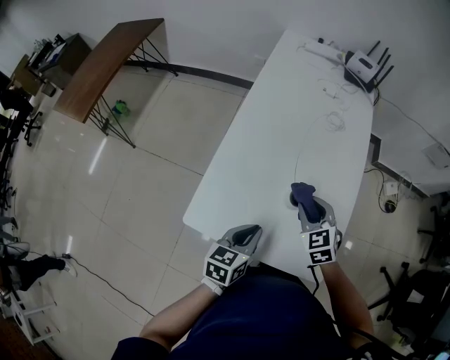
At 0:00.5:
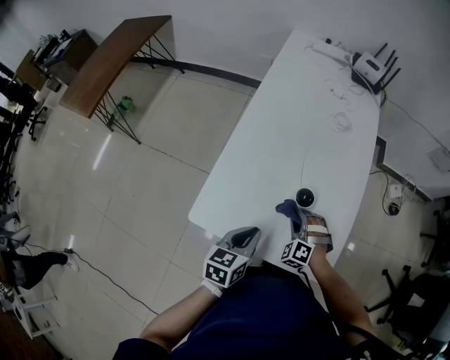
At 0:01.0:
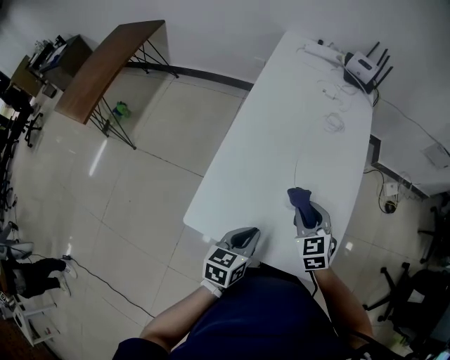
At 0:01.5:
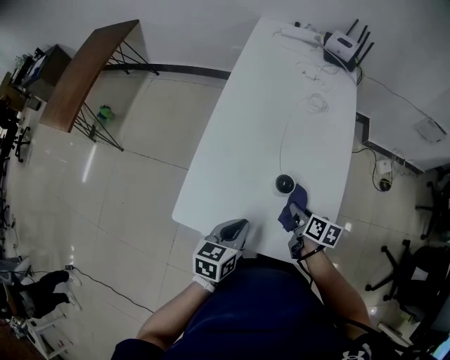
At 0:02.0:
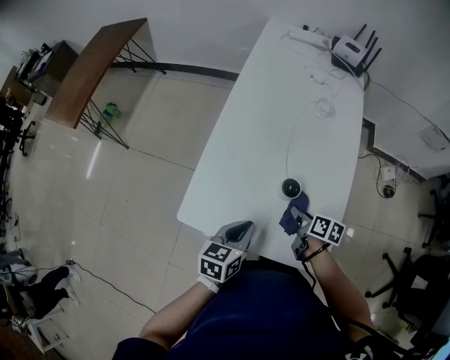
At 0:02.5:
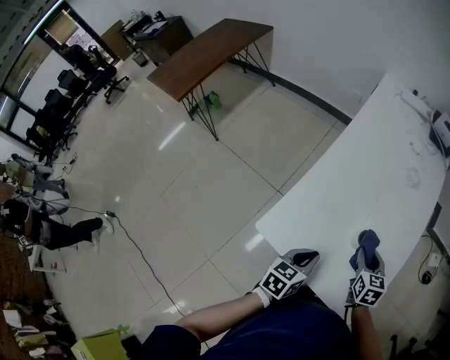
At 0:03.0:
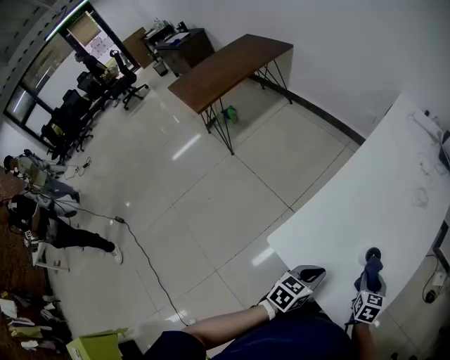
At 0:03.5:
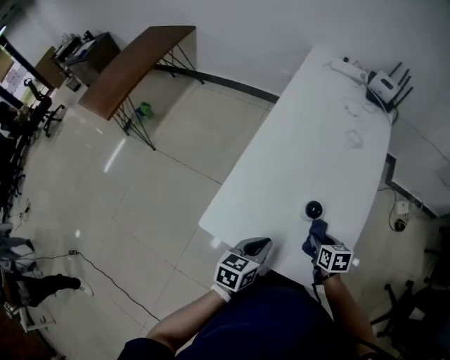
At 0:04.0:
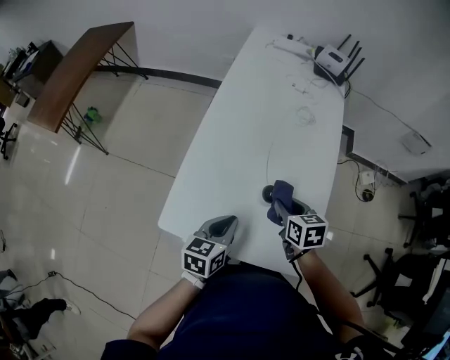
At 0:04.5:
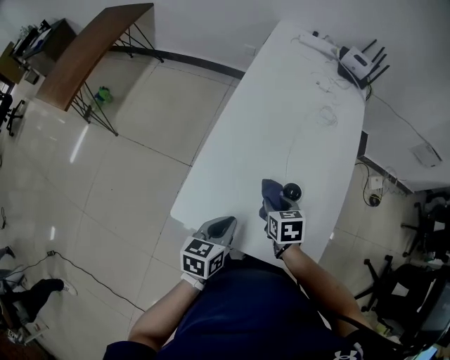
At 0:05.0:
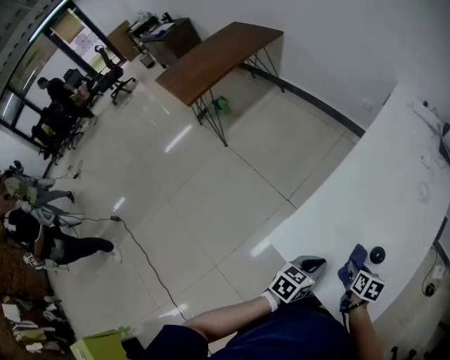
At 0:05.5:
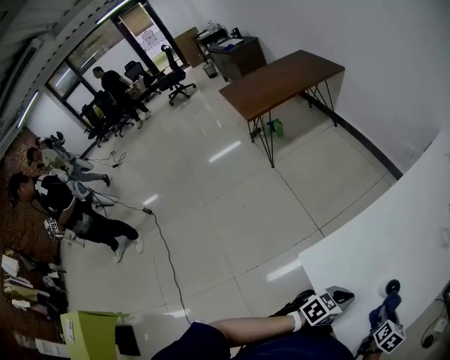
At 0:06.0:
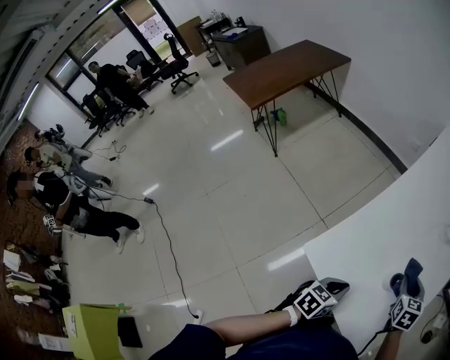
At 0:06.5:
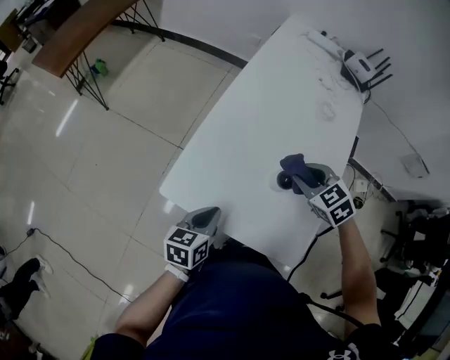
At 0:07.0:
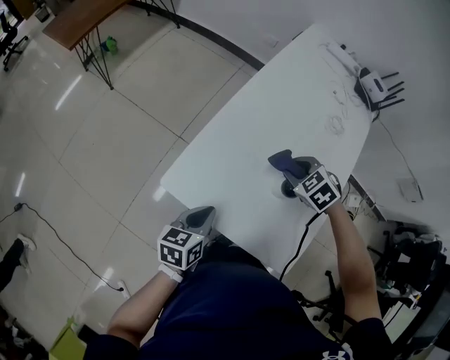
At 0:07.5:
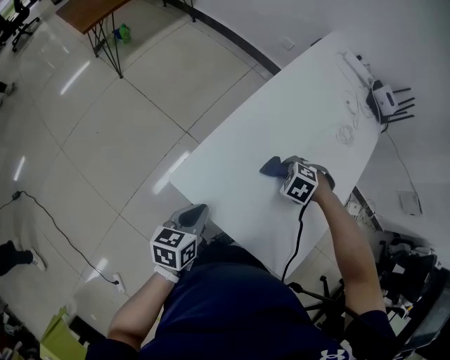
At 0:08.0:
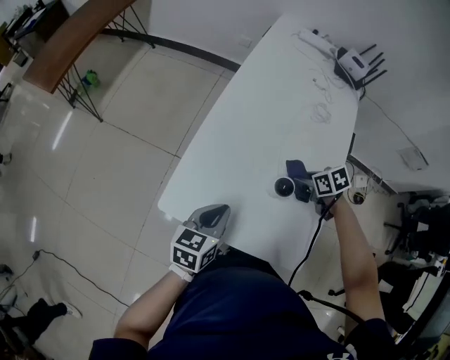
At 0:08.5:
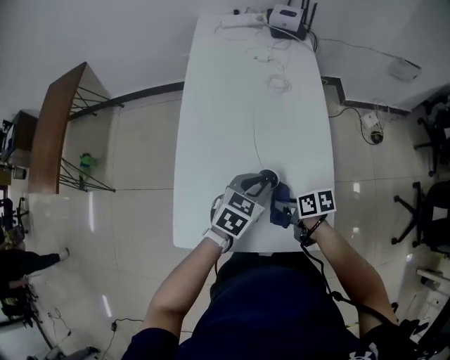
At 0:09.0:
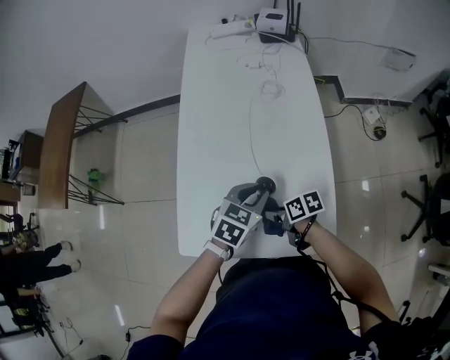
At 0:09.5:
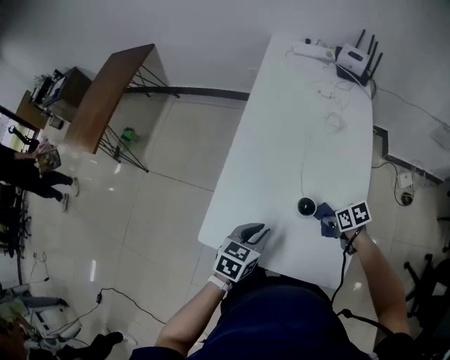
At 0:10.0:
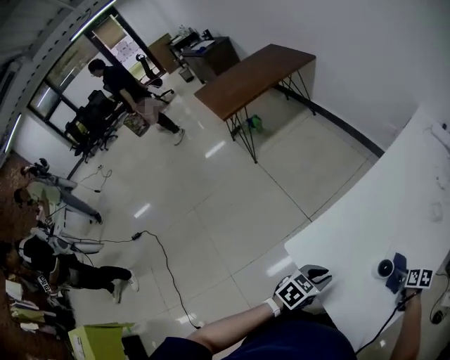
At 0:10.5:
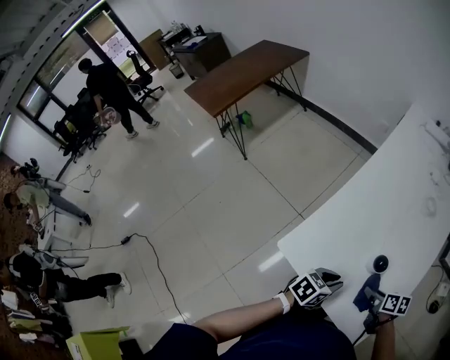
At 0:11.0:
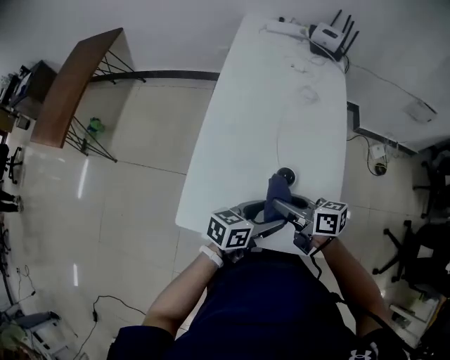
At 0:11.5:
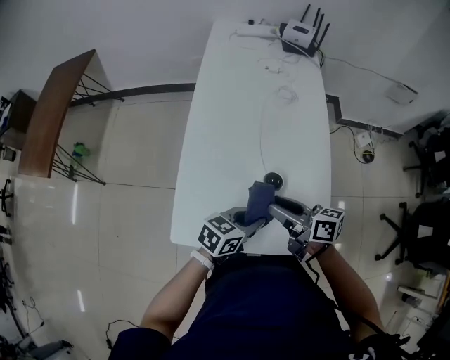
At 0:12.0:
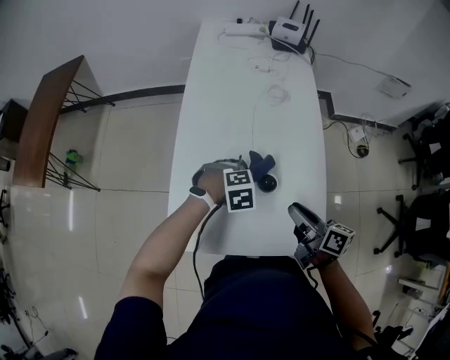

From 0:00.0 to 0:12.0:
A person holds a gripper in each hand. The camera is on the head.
From 0:00.0 to 0:02.0: The right gripper moves up and down over about 10 cm, changing direction 2 times, and twists some 70 degrees clockwise, seen from behind.
From 0:02.0 to 0:04.0: The right gripper goes up and down, approximately 10 cm each way, reversing 2 times, and swivels approximately 30 degrees.
From 0:04.0 to 0:06.0: The right gripper moves forward and upward, some 5 cm, and rotates some 30 degrees, while the left gripper moves about 5 cm.
From 0:06.0 to 0:08.0: The right gripper heads downward, covering some 10 cm, and rotates some 40 degrees.
From 0:08.0 to 0:10.0: The left gripper goes to the right and returns, roughly 15 cm each way; the right gripper goes approximately 10 cm downward and to the right.
From 0:10.0 to 0:12.0: The right gripper heads upward, covering some 20 cm, and tilts its fingers approximately 40 degrees upward. The left gripper moves approximately 20 cm, twists roughly 80 degrees clockwise, seen from behind, and opens, then closes again.

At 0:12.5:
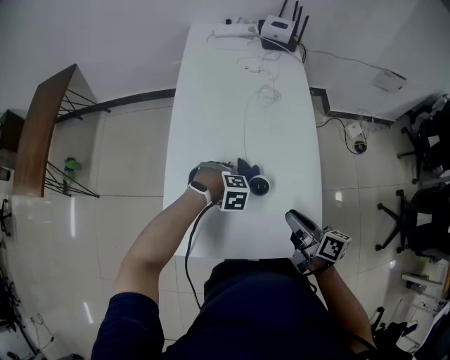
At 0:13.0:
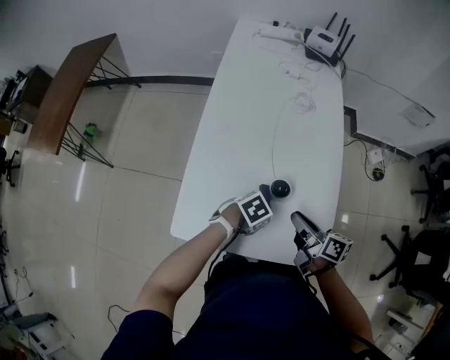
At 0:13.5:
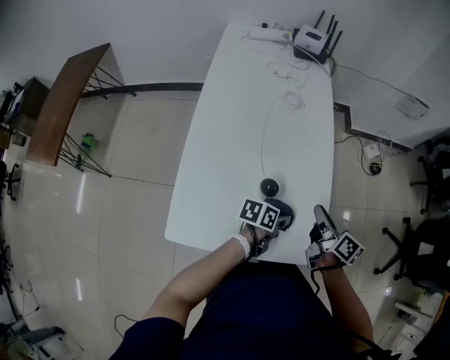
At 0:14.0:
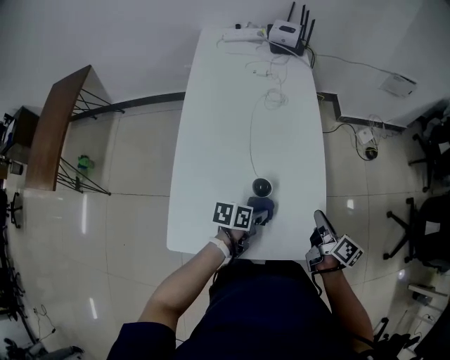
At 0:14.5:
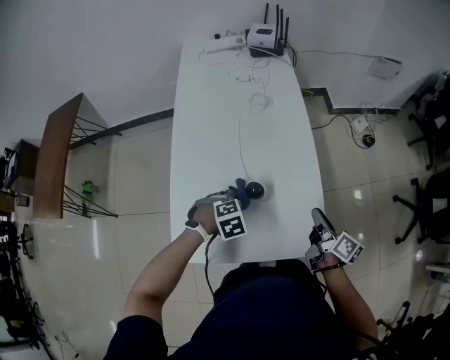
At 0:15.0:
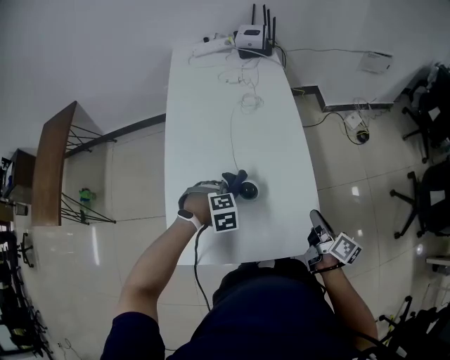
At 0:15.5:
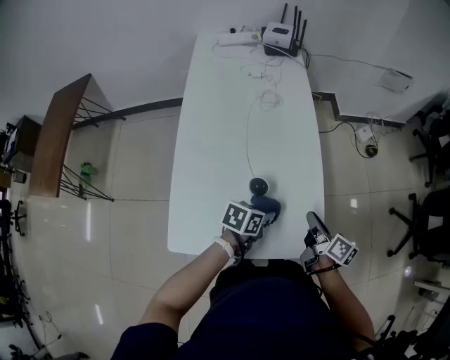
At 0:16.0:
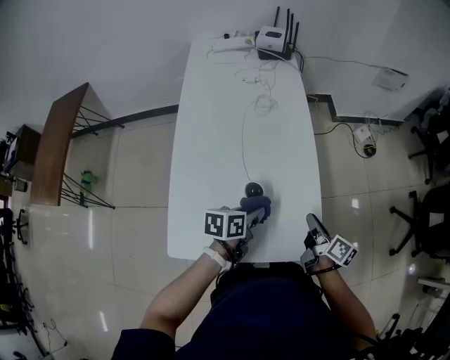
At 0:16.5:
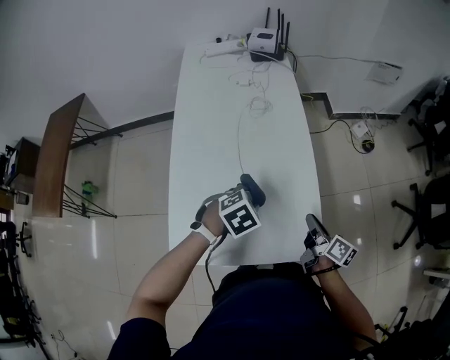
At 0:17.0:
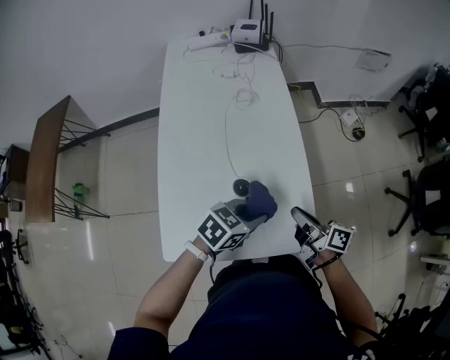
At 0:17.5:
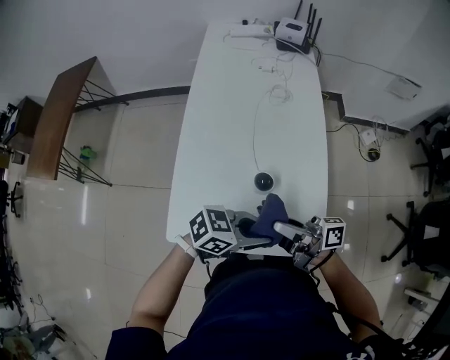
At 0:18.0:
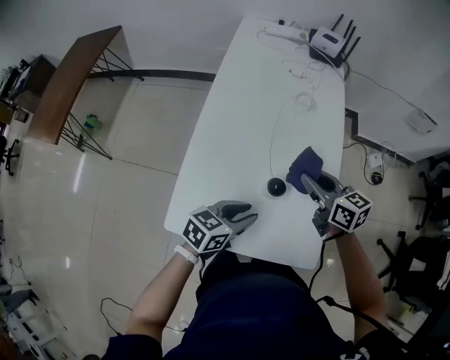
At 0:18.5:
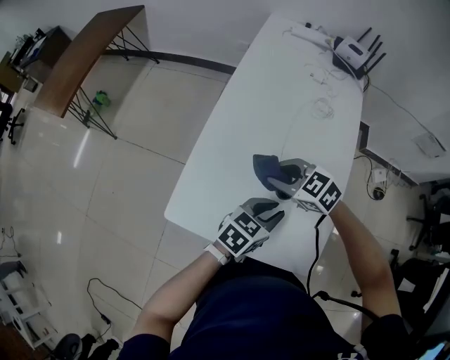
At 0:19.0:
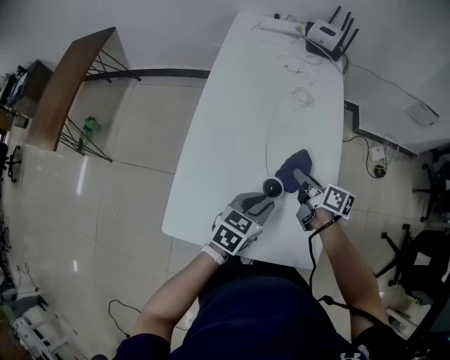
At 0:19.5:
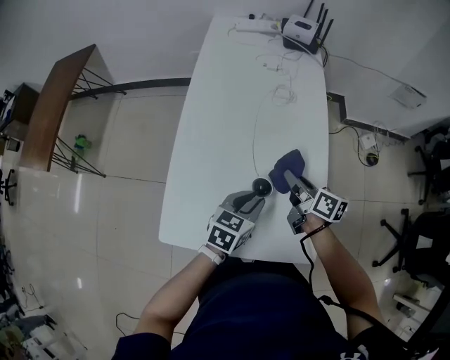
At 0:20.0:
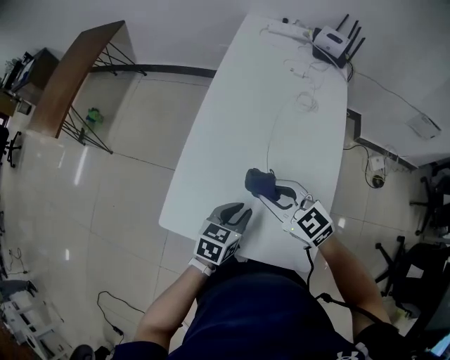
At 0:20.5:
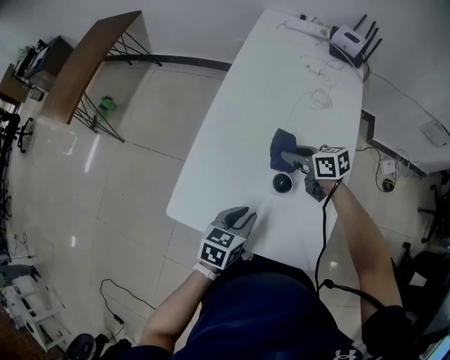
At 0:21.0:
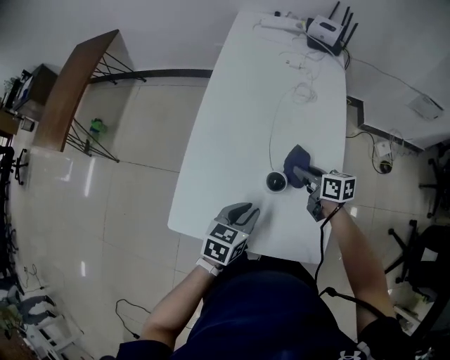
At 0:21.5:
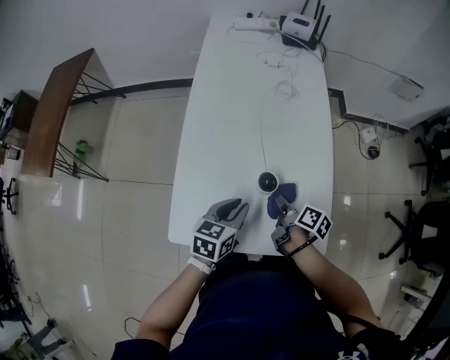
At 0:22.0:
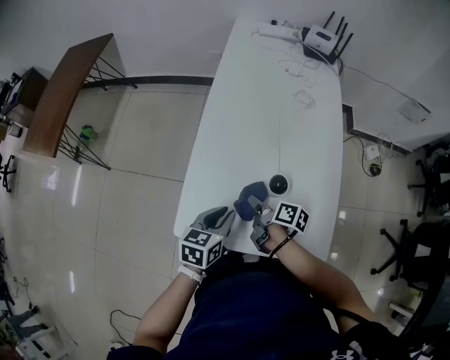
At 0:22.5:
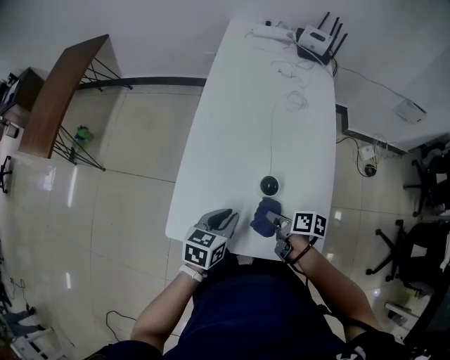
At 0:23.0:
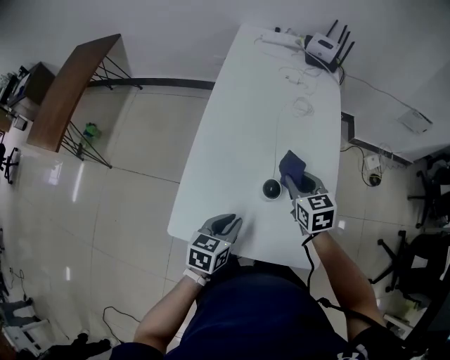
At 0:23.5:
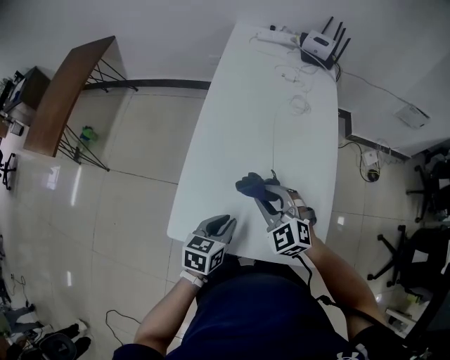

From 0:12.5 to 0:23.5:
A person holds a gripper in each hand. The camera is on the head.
From 0:12.5 to 0:14.5: The right gripper shifts by some 10 cm, and swivels roughly 20 degrees.
From 0:14.5 to 0:16.0: The left gripper changes place by roughly 10 cm, and twists approximately 70 degrees counterclockwise, seen from behind.
From 0:16.0 to 0:18.0: The left gripper changes its angle by roughly 20 degrees; the right gripper moves about 20 cm, and twists about 40 degrees counterclockwise, seen from behind.
From 0:18.0 to 0:20.0: The right gripper travels downward and back again, about 10 cm each way, and changes its angle by roughly 40 degrees; the left gripper rotates some 20 degrees.
From 0:20.0 to 0:21.5: The right gripper heads downward, covering about 15 cm, and rolls clockwise, seen from behind, by roughly 90 degrees.
From 0:21.5 to 0:23.5: The right gripper moves left and right over approximately 15 cm, changing direction 2 times, and rotates around the line of its fingers by some 110 degrees, counterclockwise from behind. Meanwhile the left gripper changes place by about 5 cm.

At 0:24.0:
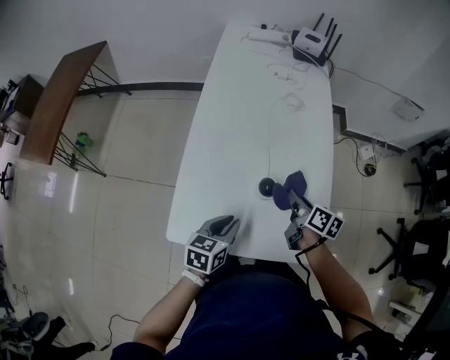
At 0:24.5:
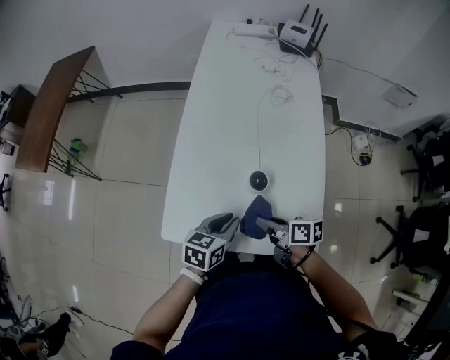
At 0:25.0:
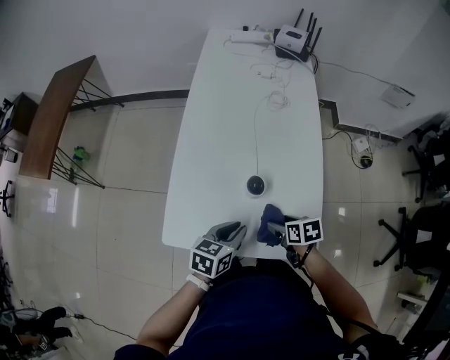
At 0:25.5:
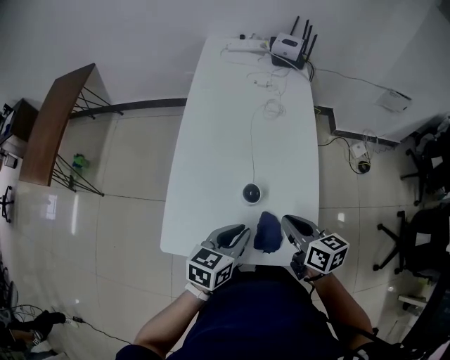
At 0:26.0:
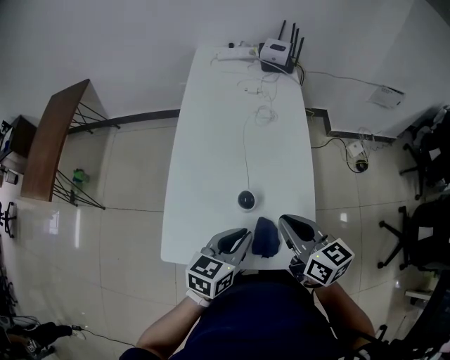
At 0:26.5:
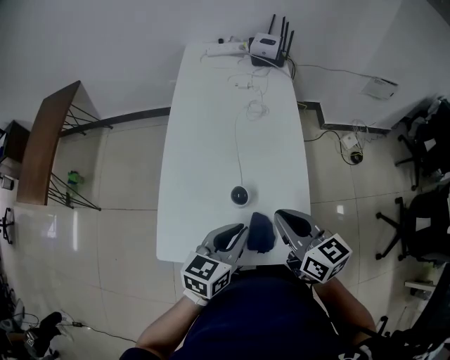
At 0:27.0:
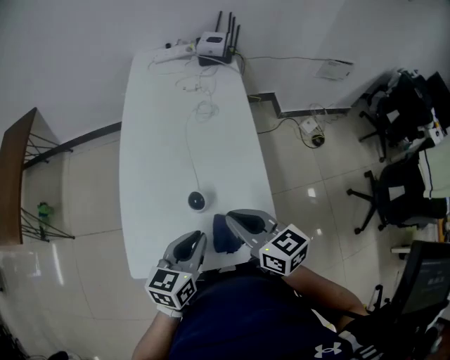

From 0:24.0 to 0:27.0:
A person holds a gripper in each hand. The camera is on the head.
From 0:24.0 to 0:25.5: The left gripper shifts some 10 cm to the right and upward. The right gripper heads upward and backward, covering some 10 cm, rotates about 20 degrees, and opens and closes again.
From 0:25.5 to 0:27.0: The right gripper is displaced upward by roughly 5 cm.
